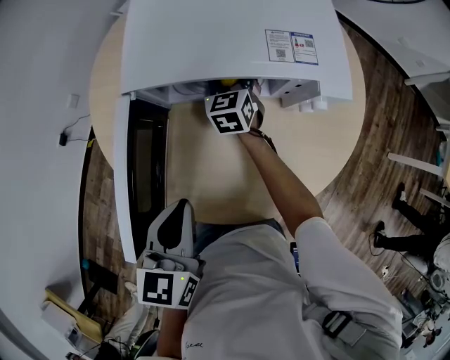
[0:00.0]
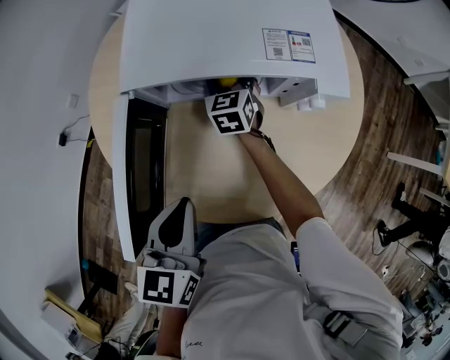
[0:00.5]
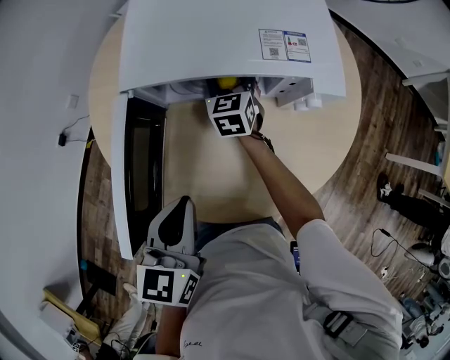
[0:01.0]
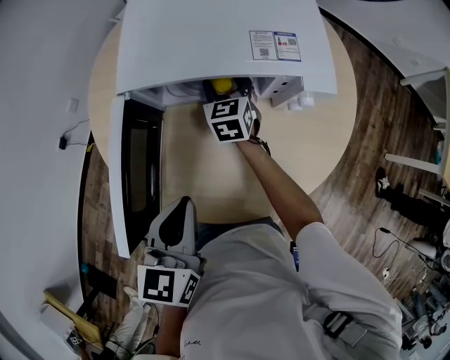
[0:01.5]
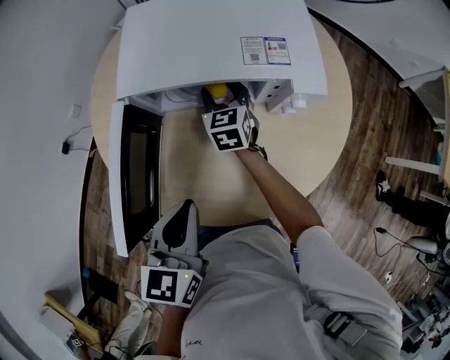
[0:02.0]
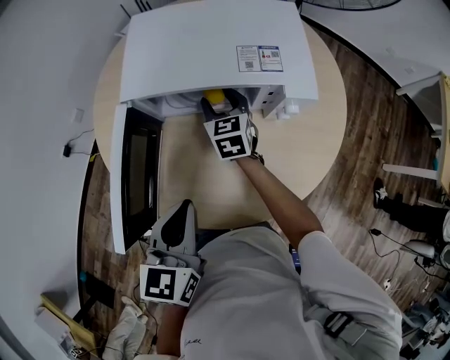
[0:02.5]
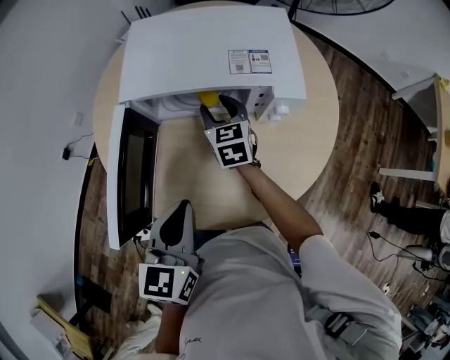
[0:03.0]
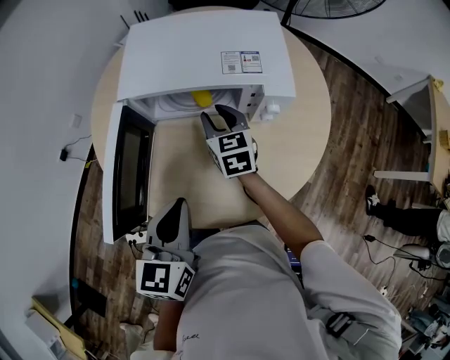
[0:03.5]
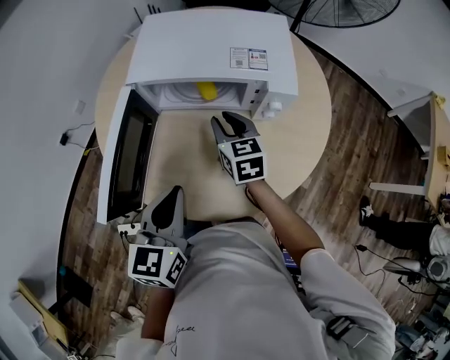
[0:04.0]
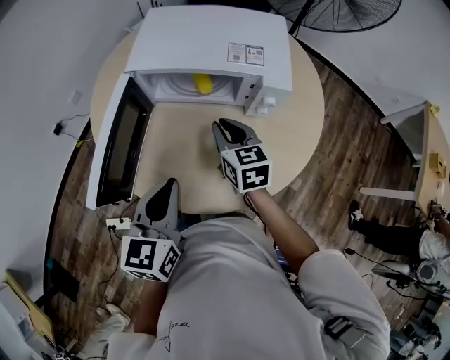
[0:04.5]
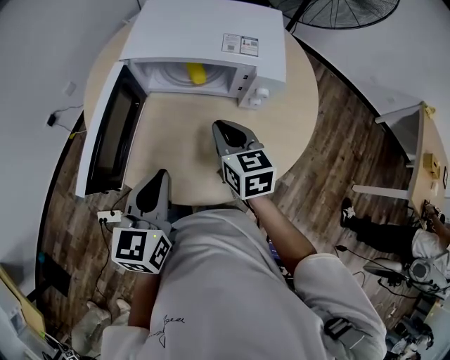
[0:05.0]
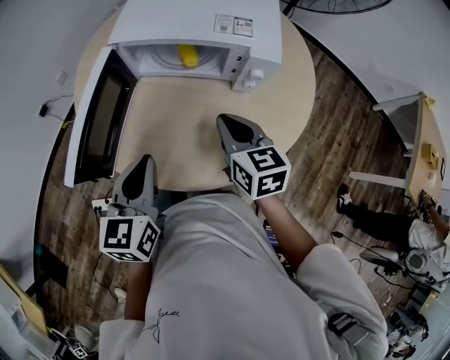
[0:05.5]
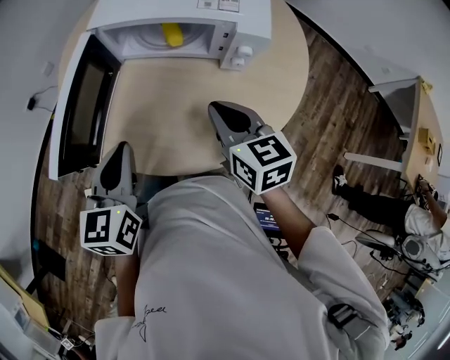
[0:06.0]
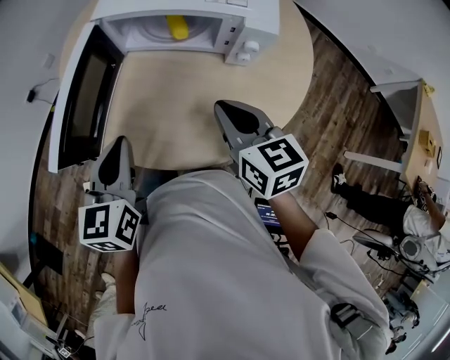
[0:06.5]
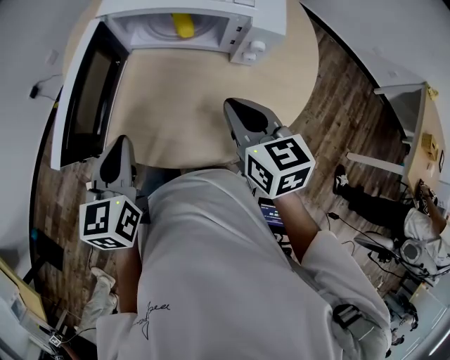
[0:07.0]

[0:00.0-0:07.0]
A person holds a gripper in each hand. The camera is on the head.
0:00.0 to 0:02.0: The right gripper ends up roughly 5 cm from where it was.
0:02.0 to 0:03.5: The right gripper shifts approximately 10 cm backward and upward.
0:03.5 to 0:05.0: The right gripper travels backward by roughly 15 cm, and closes up.
0:05.0 to 0:07.0: The right gripper is displaced backward by approximately 5 cm. Meanwhile the left gripper moves about 5 cm.

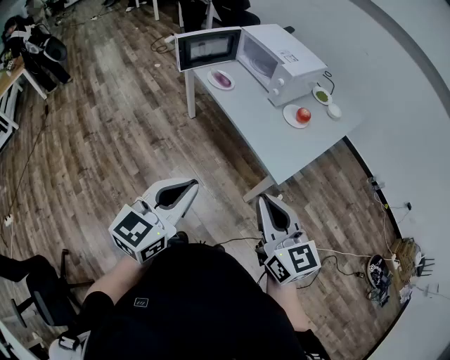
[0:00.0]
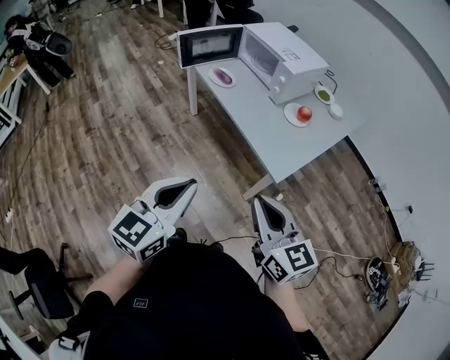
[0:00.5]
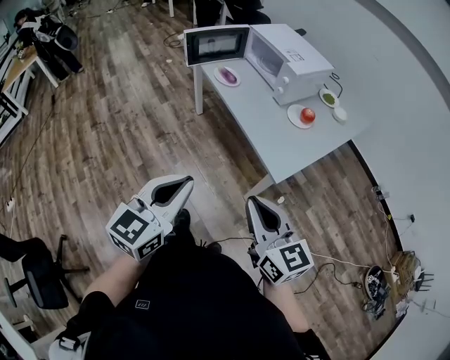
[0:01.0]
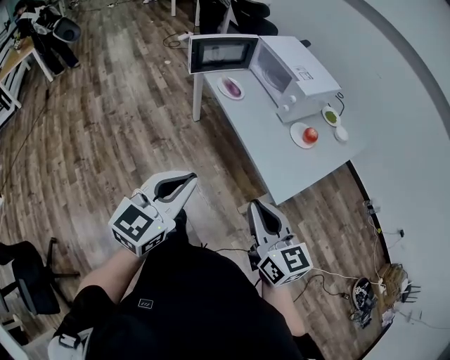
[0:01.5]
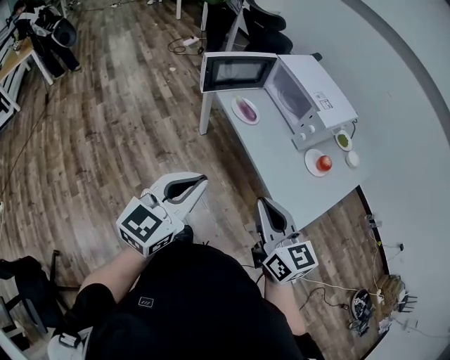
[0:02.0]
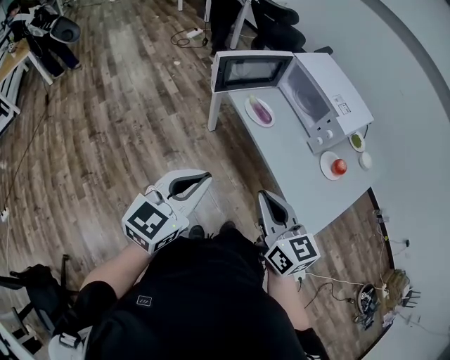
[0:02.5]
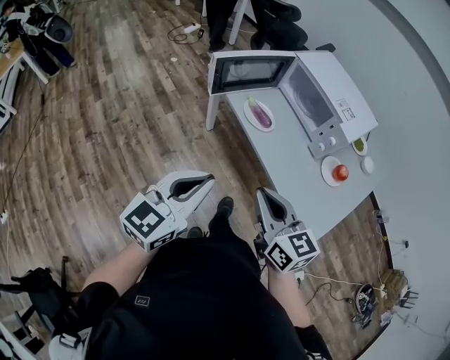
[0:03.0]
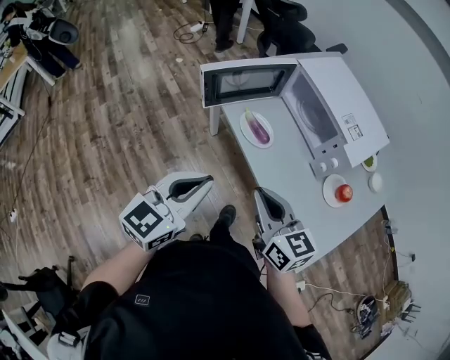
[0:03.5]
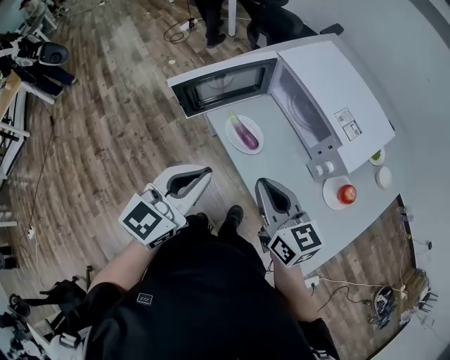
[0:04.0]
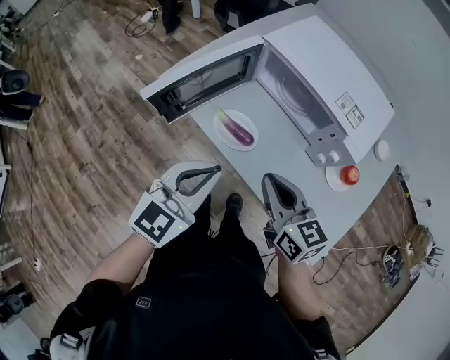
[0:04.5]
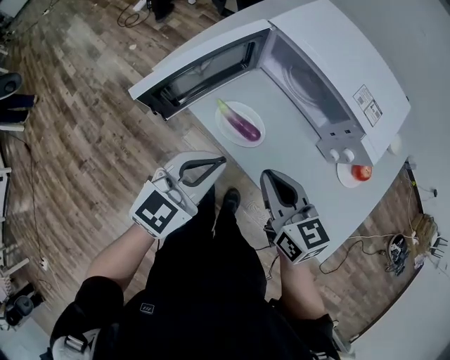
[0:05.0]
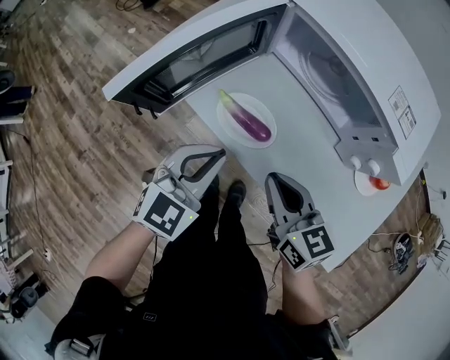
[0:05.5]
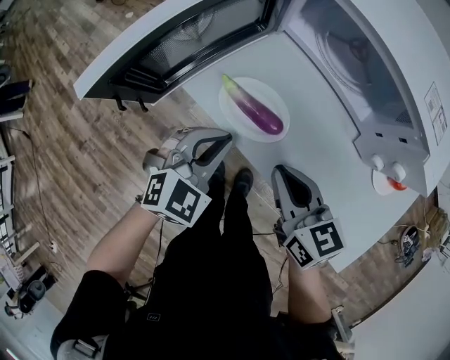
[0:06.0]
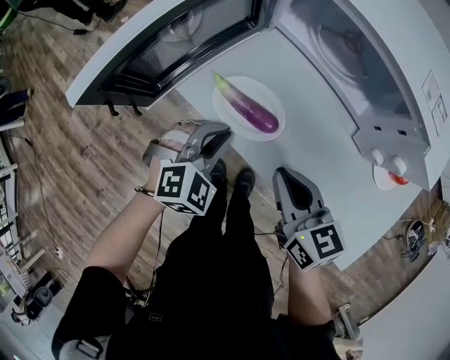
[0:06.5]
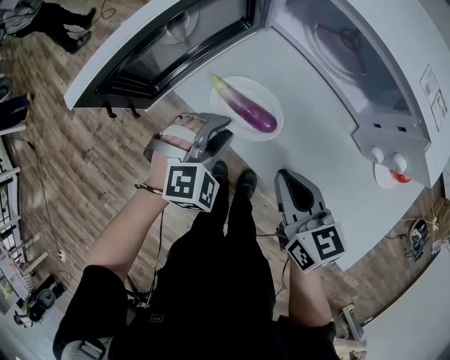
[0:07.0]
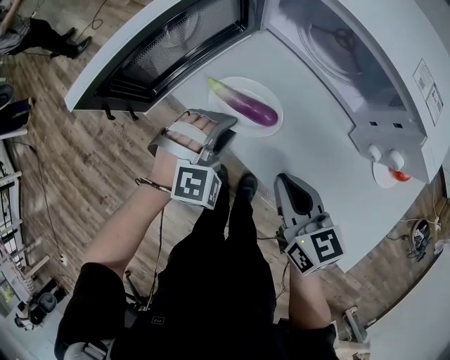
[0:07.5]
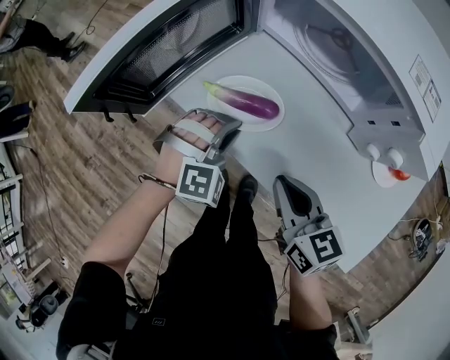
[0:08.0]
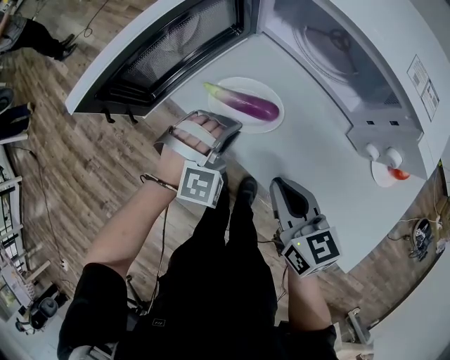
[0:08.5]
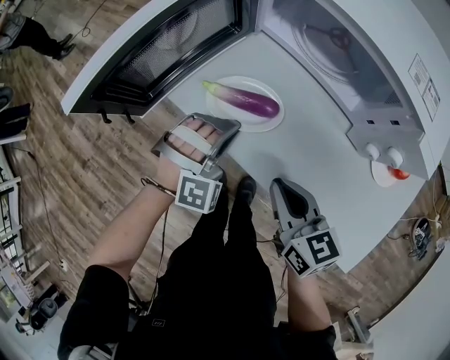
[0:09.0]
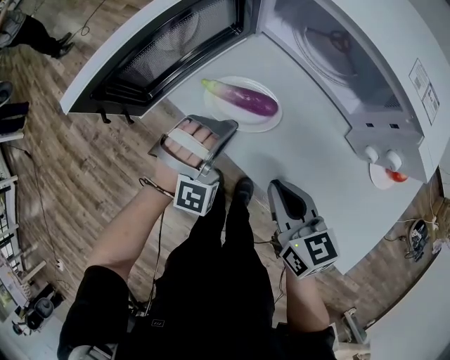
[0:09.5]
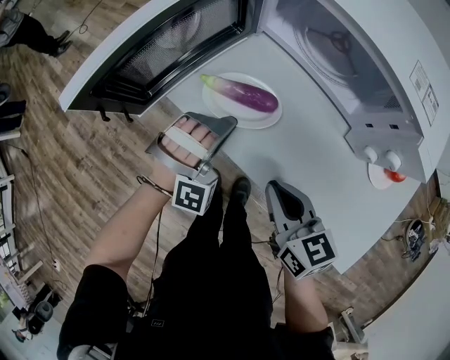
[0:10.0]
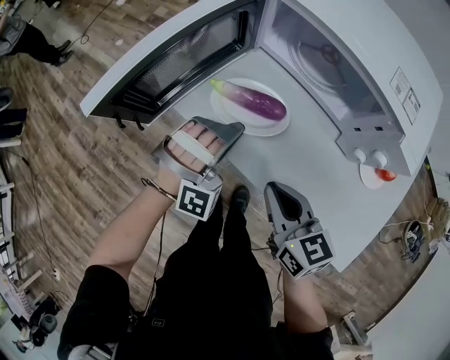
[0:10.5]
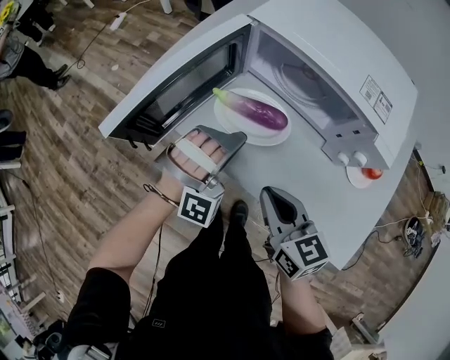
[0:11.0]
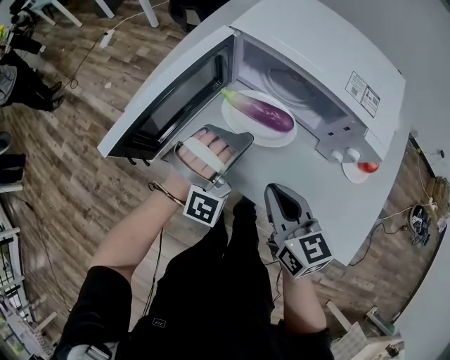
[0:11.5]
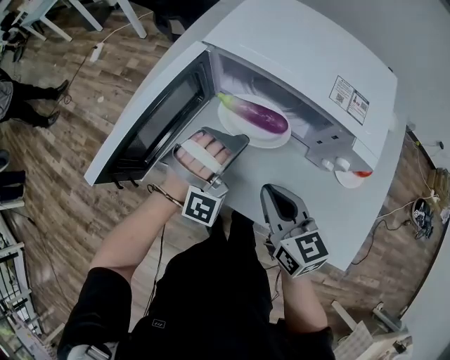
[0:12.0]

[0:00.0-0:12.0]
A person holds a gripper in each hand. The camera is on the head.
0:00.0 to 0:02.0: The two grippers go roughly 20 cm forward and to the left.
0:02.0 to 0:04.0: Both grippers travel together forward, roughly 30 cm.
0:04.0 to 0:06.0: Both grippers move downward and forward, some 25 cm. The left gripper turns by approximately 40 degrees.
0:06.0 to 0:08.0: The left gripper heads downward, covering about 5 cm, and changes its angle by some 40 degrees.
0:08.0 to 0:10.0: The left gripper turns by approximately 20 degrees.
0:10.0 to 0:12.0: The right gripper shifts about 10 cm upward and forward. The left gripper moves upward, to the right and forward, some 15 cm.

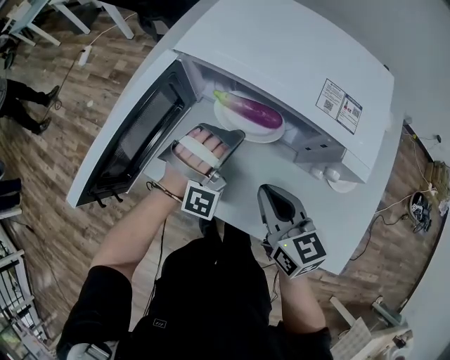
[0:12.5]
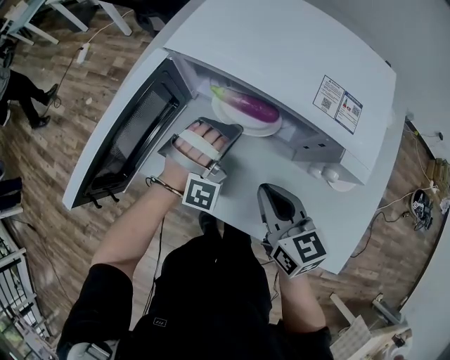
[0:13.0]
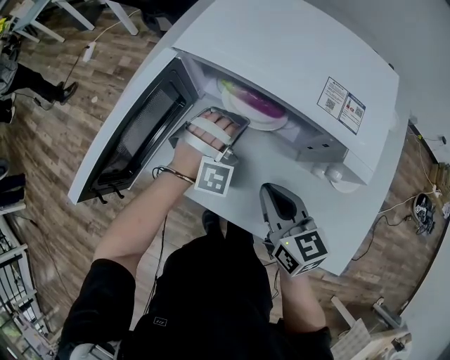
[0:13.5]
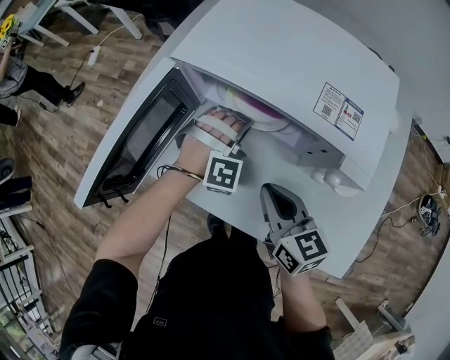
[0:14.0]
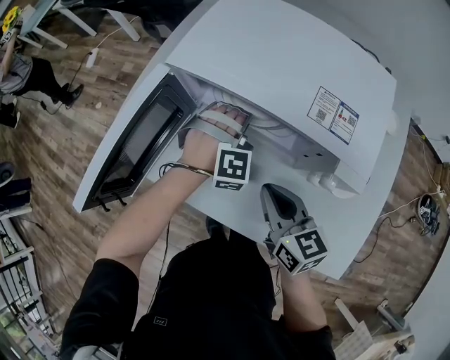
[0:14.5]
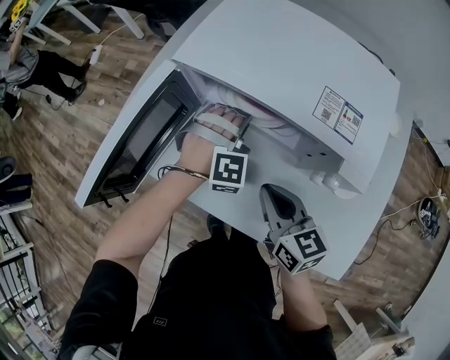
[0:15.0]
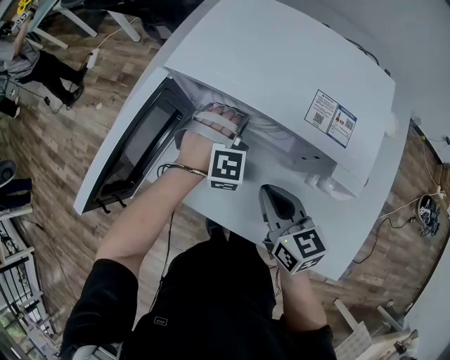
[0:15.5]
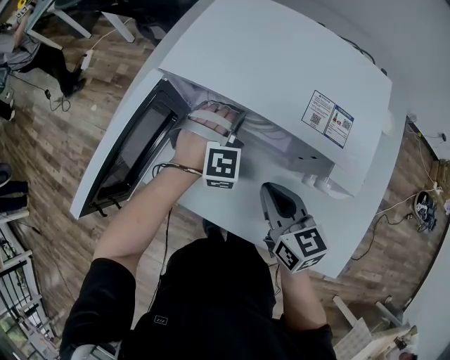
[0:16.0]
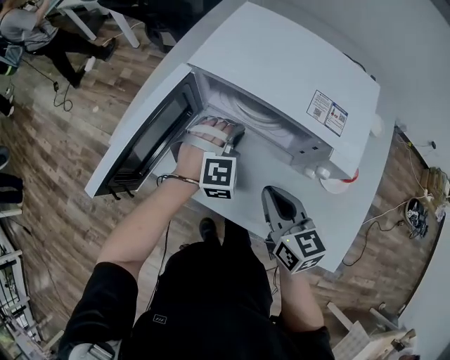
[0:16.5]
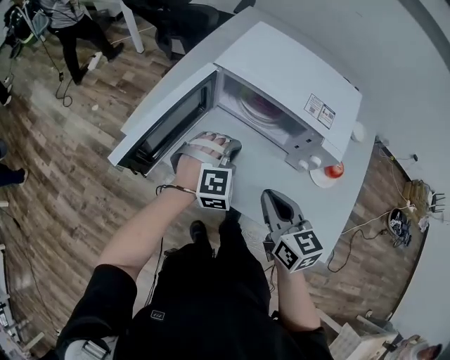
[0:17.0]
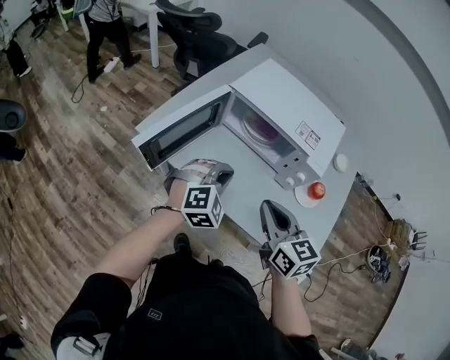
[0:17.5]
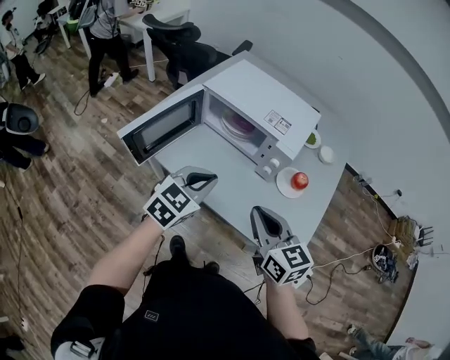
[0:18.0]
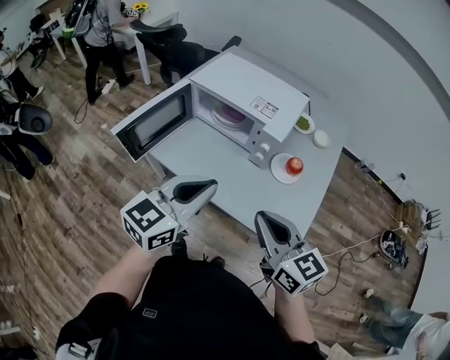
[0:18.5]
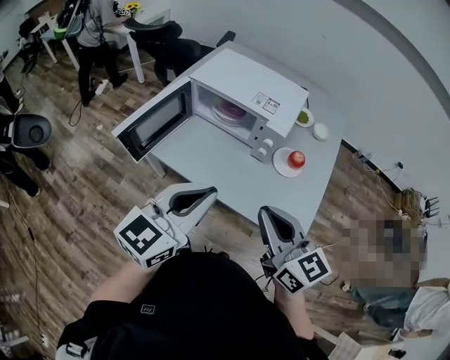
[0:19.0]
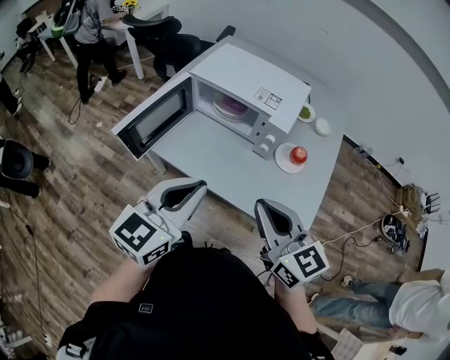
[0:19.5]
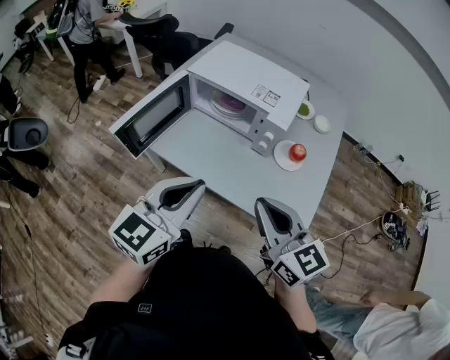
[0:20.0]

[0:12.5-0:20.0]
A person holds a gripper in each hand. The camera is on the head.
0:12.5 to 0:14.5: The left gripper shifts roughly 5 cm forward, and rotates approximately 30 degrees.
0:14.5 to 0:16.5: The left gripper moves some 5 cm.
0:16.5 to 0:18.0: Both grippers move backward and upward, about 25 cm. The left gripper twists approximately 60 degrees counterclockwise, seen from behind.
0:18.0 to 0:20.0: The right gripper shifts roughly 10 cm upward and backward. The left gripper goes approximately 15 cm upward and backward, and rotates some 20 degrees.
